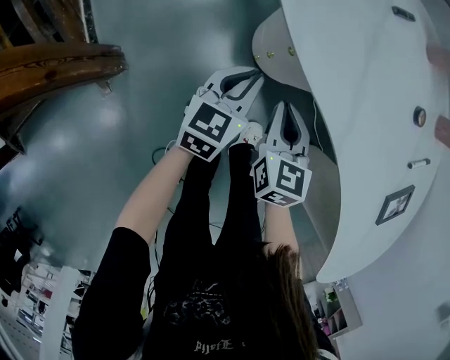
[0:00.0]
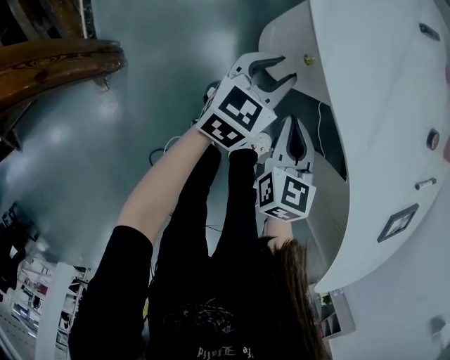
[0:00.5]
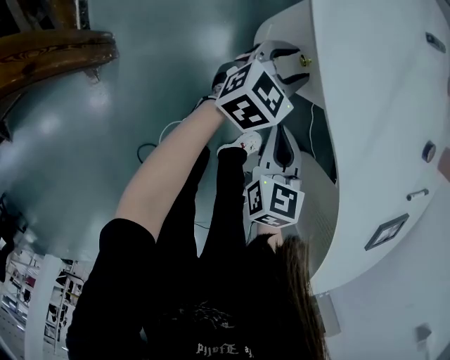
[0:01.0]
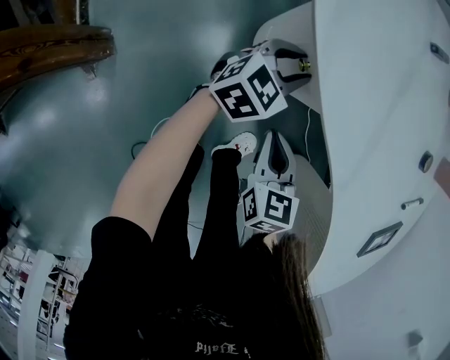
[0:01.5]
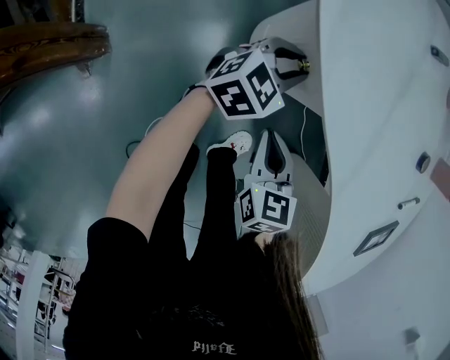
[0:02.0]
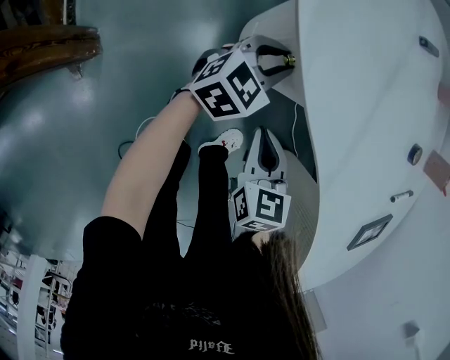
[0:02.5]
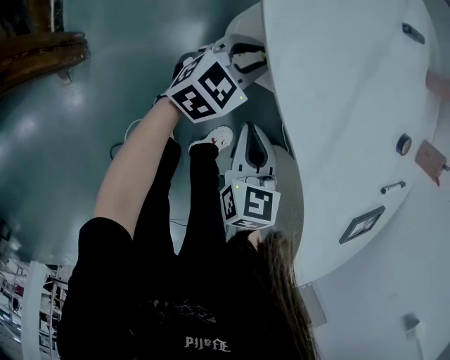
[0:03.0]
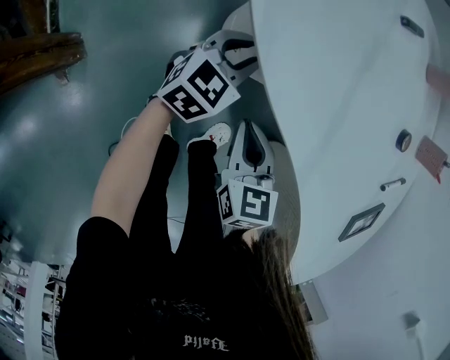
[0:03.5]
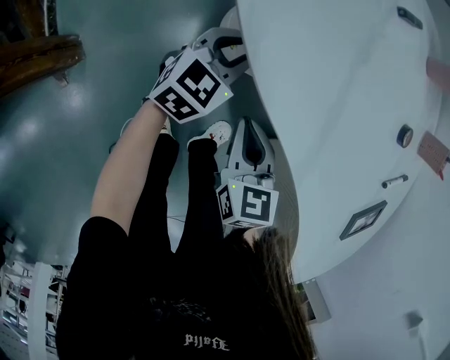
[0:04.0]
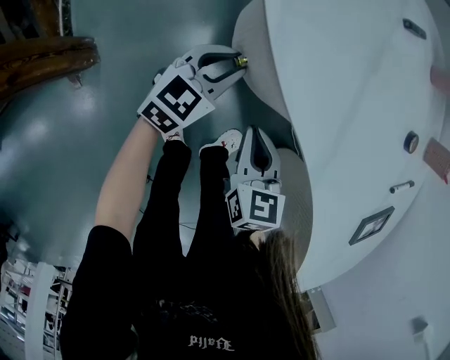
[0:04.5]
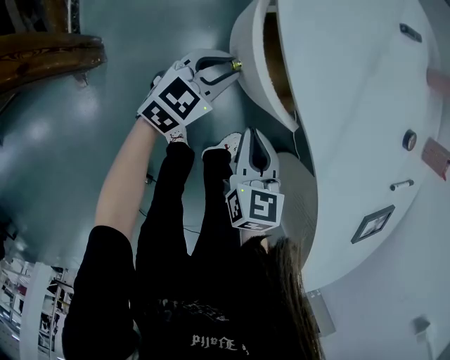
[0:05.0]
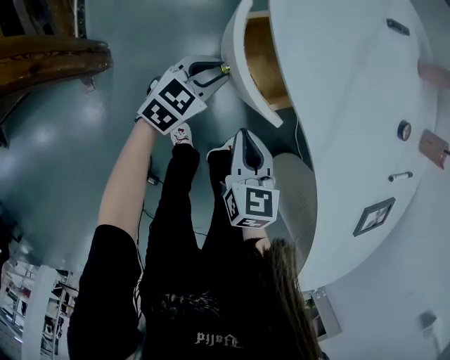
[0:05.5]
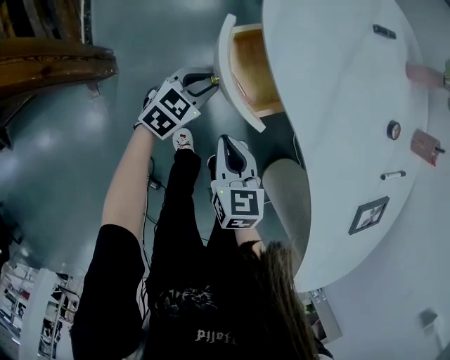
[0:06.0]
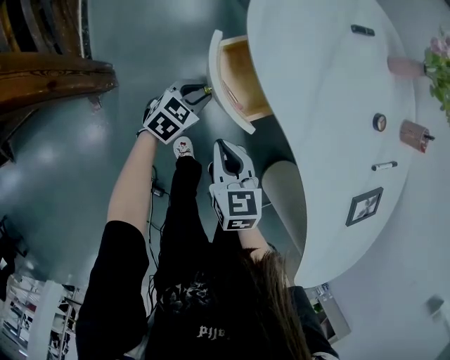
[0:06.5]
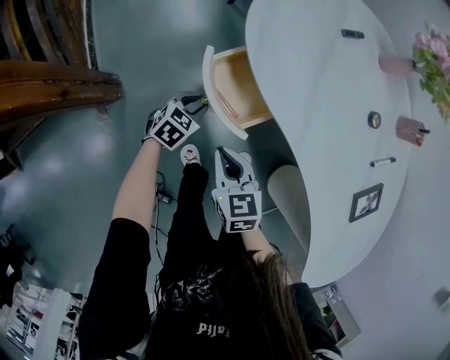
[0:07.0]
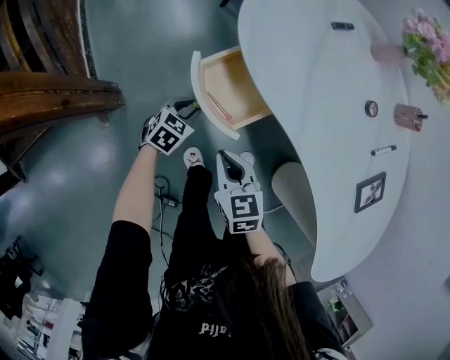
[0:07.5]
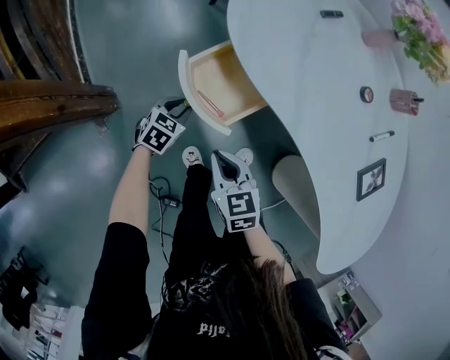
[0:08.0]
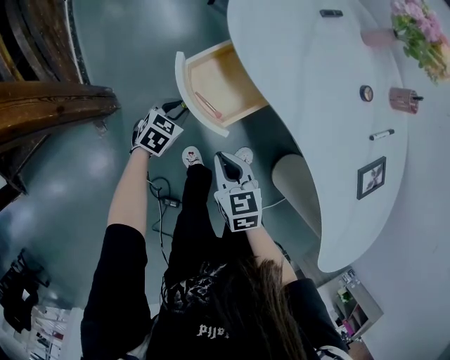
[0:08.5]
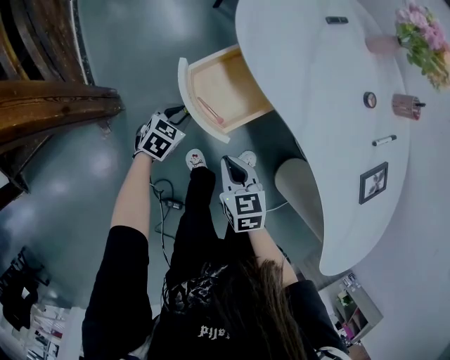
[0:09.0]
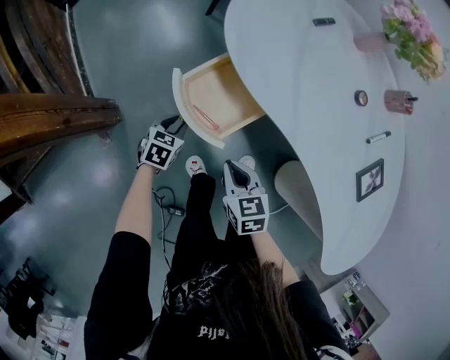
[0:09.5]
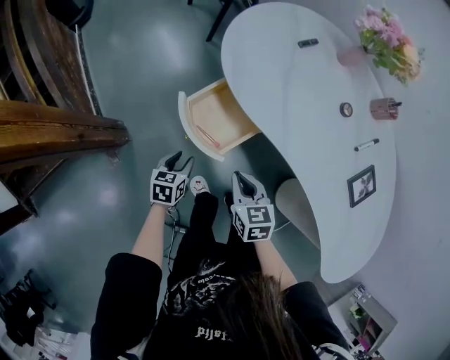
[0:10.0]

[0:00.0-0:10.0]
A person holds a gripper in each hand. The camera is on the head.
0:00.0 to 0:02.0: The left gripper travels forward and downward by about 15 cm, swivels some 20 degrees, and opens up. The right gripper travels downward by roughly 10 cm.
0:02.0 to 0:04.0: The grippers move only a little.
0:04.0 to 0:06.0: Both grippers move backward and to the left, roughly 15 cm.
0:06.0 to 0:08.0: The right gripper travels upward by about 5 cm; the left gripper shifts approximately 5 cm to the left and backward.
0:08.0 to 0:10.0: The left gripper heads backward and upward, covering about 10 cm, and rotates approximately 30 degrees, while the right gripper ends up about 5 cm from where it was.

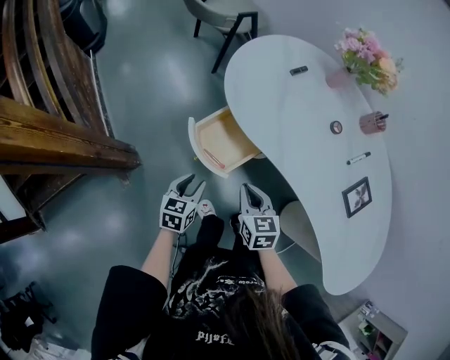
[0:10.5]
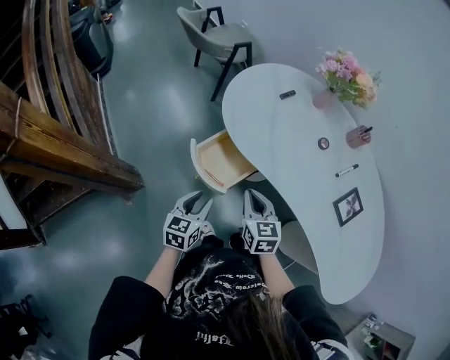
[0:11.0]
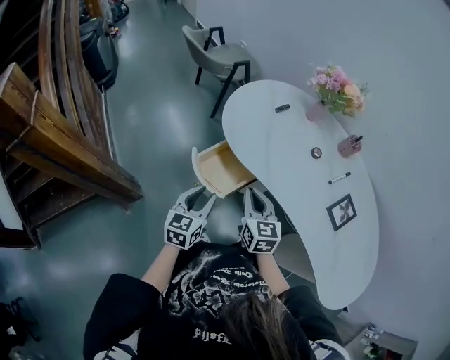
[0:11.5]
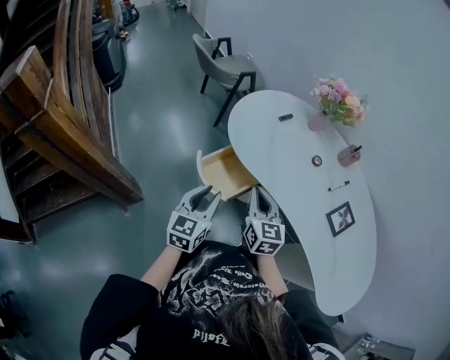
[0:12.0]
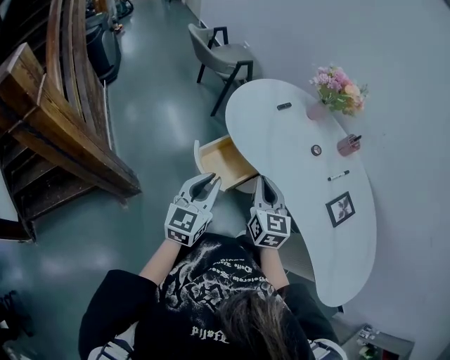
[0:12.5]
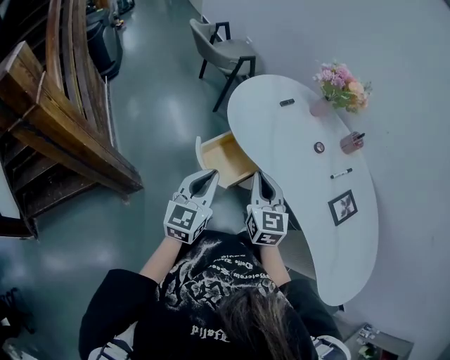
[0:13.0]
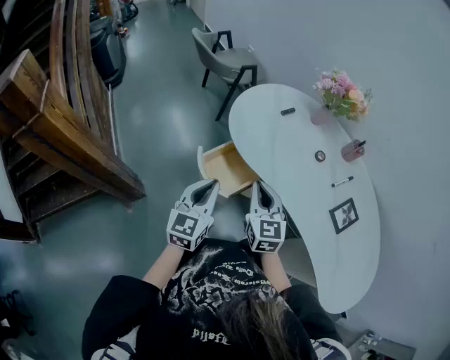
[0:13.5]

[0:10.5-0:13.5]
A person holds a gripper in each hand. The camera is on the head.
0:10.5 to 0:12.0: The two grippers go roughly 15 cm upward. The left gripper rotates about 30 degrees. Meanwhile the right gripper rotates some 20 degrees.
0:12.0 to 0:13.5: The left gripper closes.

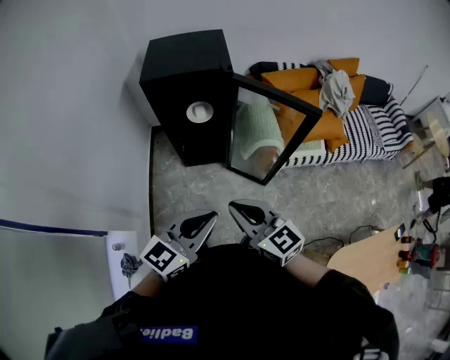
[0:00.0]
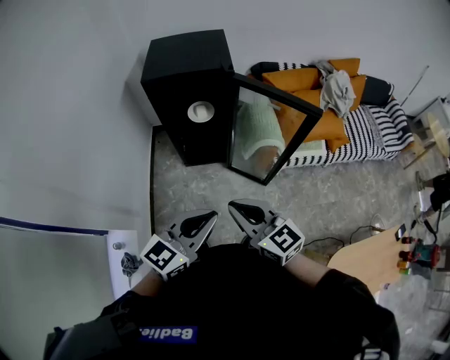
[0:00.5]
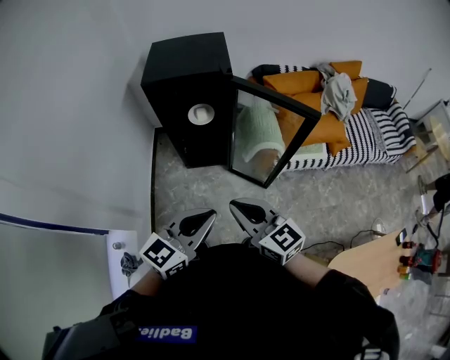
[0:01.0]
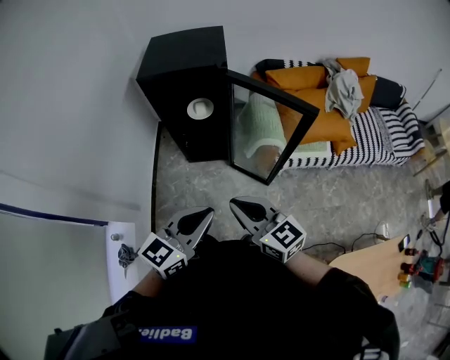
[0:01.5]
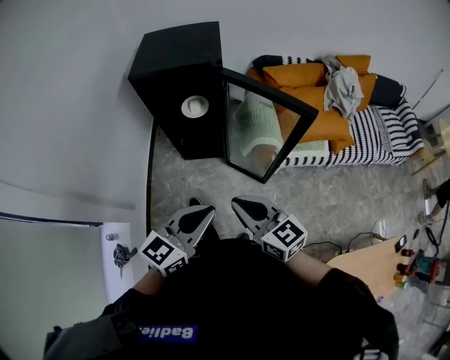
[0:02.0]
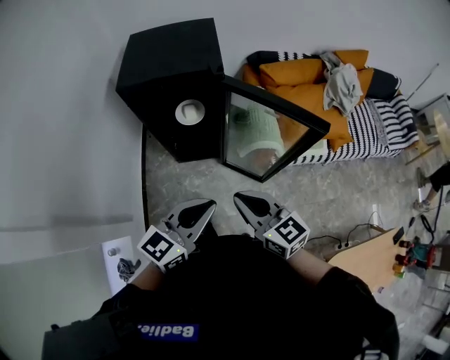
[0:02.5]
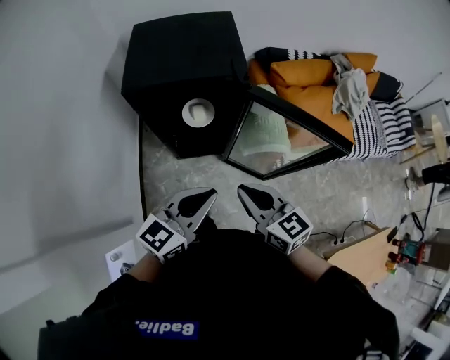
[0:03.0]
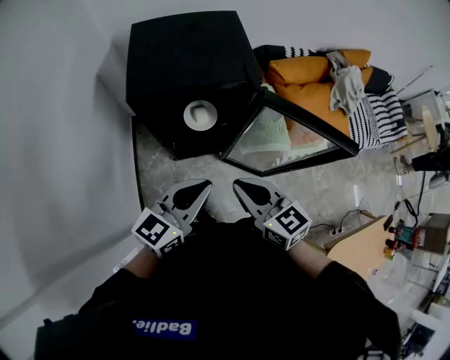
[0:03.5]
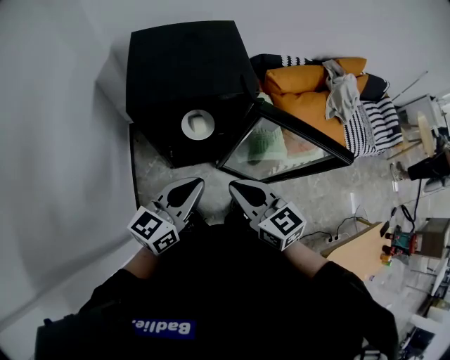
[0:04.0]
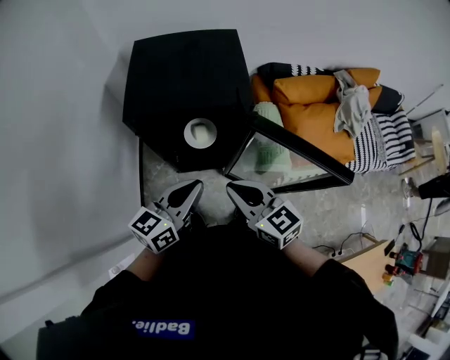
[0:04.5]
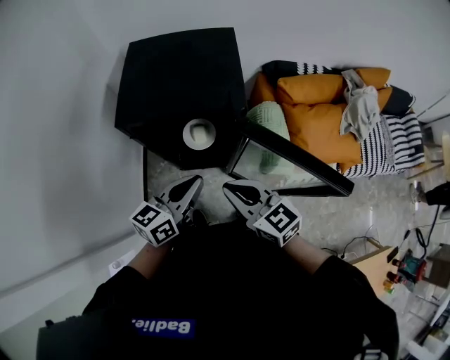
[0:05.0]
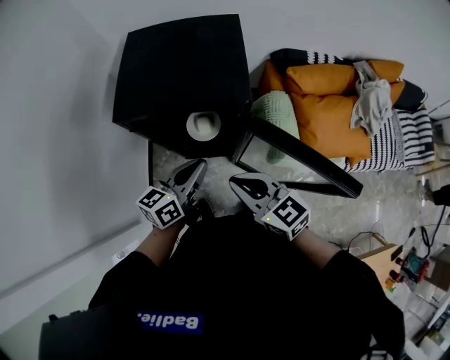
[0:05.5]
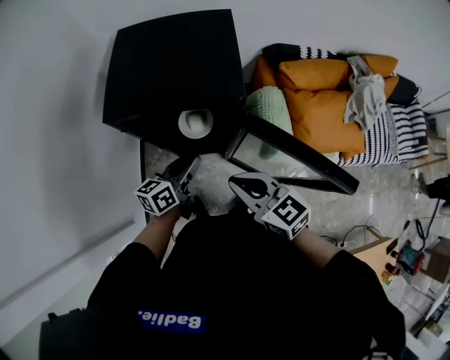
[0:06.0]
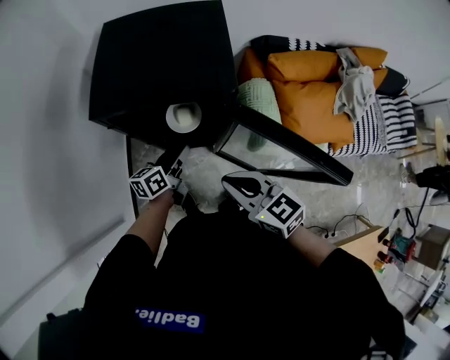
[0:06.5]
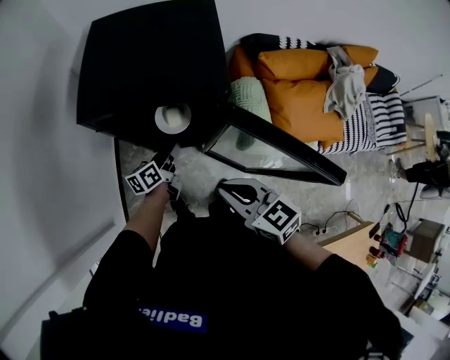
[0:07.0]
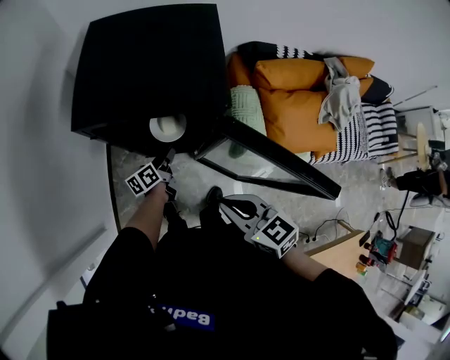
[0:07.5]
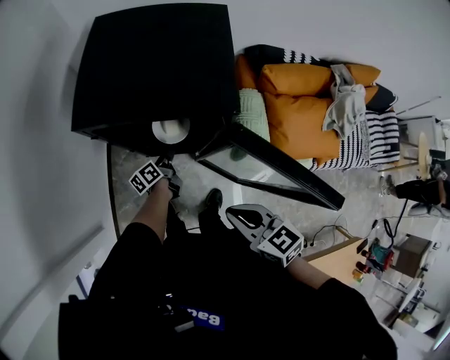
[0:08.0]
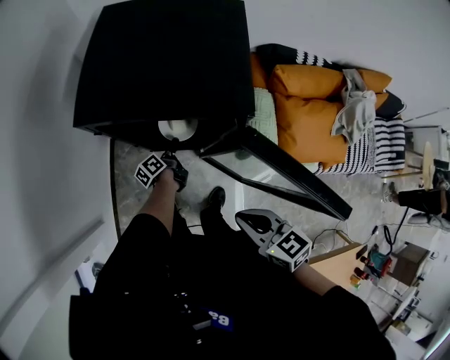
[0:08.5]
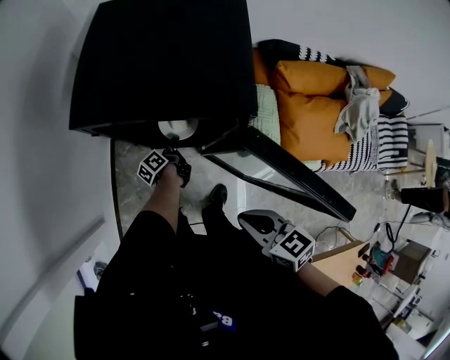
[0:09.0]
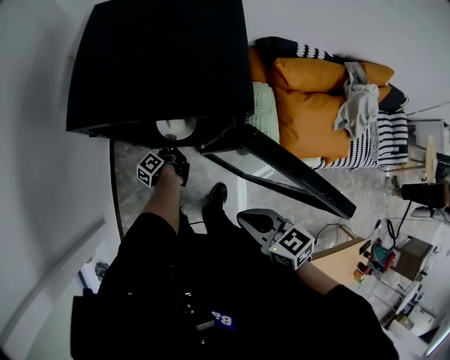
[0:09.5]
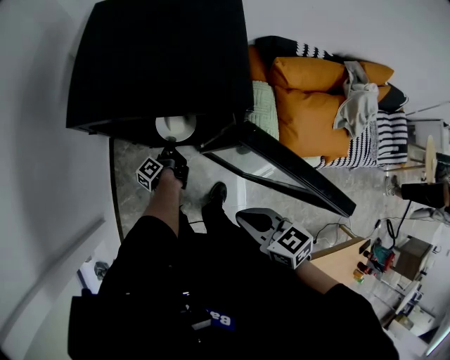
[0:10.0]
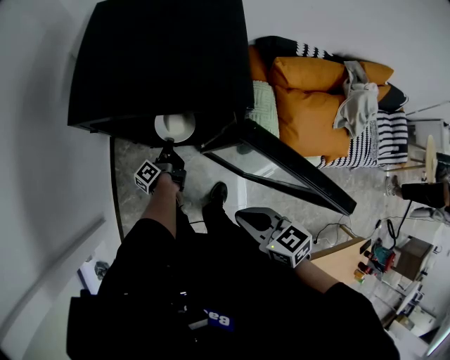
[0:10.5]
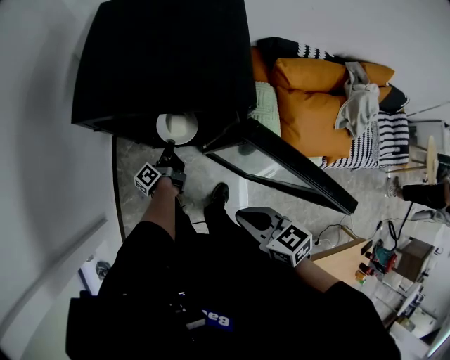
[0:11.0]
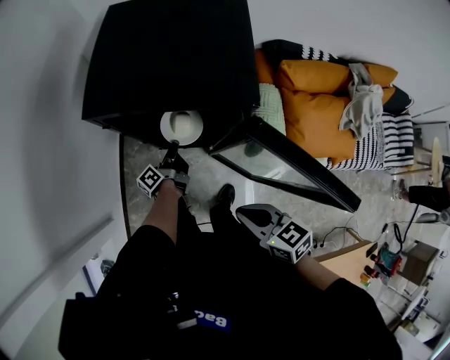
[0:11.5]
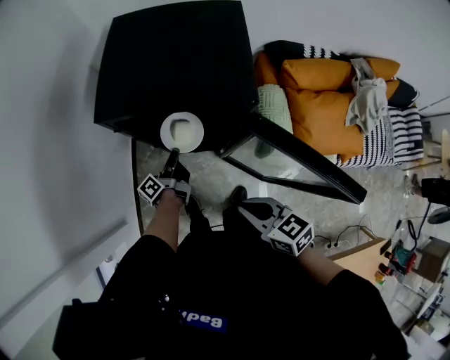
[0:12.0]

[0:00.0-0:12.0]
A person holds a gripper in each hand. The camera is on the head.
0:00.0 to 0:02.0: Both grippers move to the right, roughly 10 cm.
0:02.0 to 0:04.0: Both grippers move forward and to the left, roughly 30 cm.
0:04.0 to 0:06.0: The left gripper travels downward, forward and to the right by about 20 cm, and turns by some 30 degrees. The right gripper shifts roughly 10 cm to the right and forward.
0:06.0 to 0:08.0: The right gripper is displaced downward by some 5 cm. The left gripper travels downward by approximately 20 cm, turns by approximately 40 degrees, and opens up.
0:08.0 to 0:10.0: The left gripper rotates approximately 30 degrees, and closes its fingers.
0:10.0 to 0:12.0: The left gripper is displaced upward and to the left by approximately 10 cm.

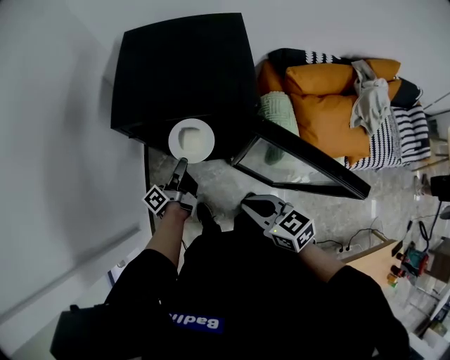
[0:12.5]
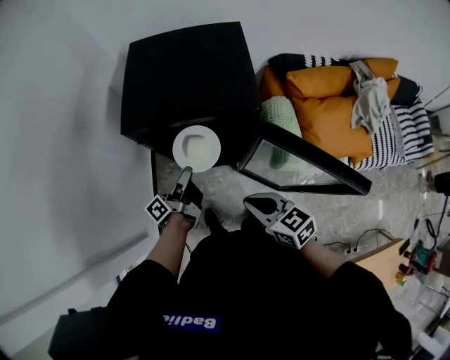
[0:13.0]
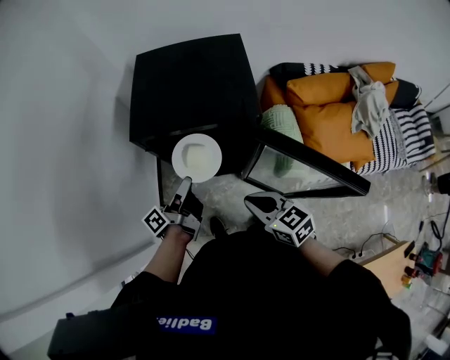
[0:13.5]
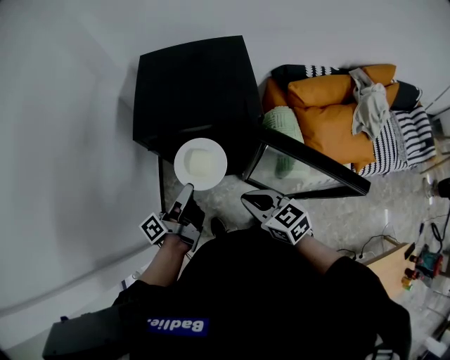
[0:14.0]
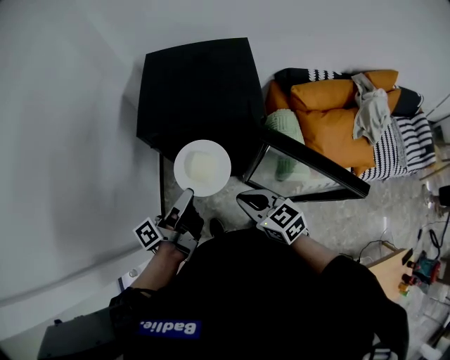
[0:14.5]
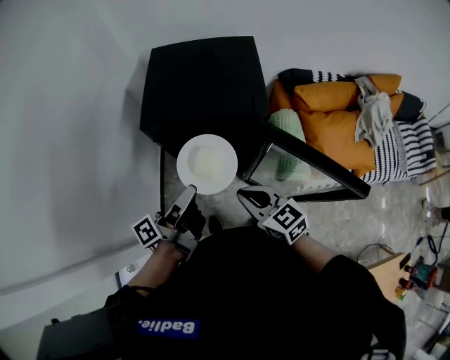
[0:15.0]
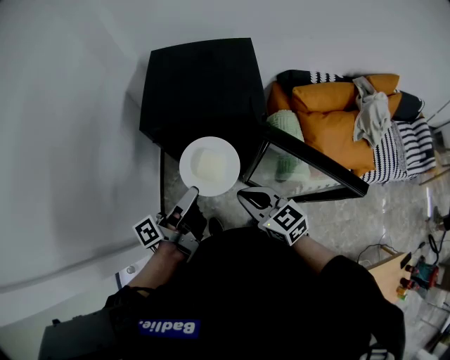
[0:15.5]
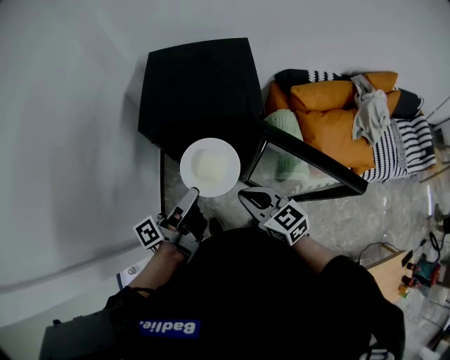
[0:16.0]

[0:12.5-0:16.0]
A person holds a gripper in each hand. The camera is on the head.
0:12.5 to 0:14.5: The left gripper is displaced upward and backward by about 20 cm. Meanwhile the right gripper ends up some 5 cm from where it was.
0:14.5 to 0:16.0: The grippers stay close to where they were, moving slightly.
